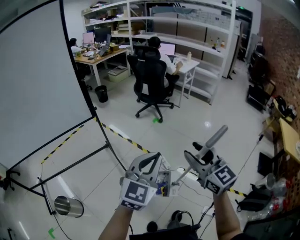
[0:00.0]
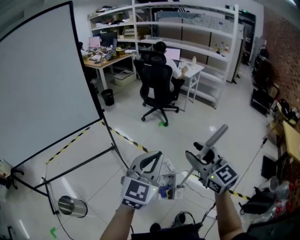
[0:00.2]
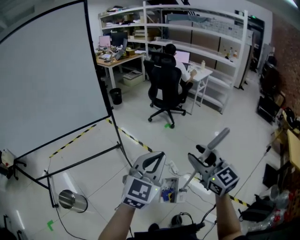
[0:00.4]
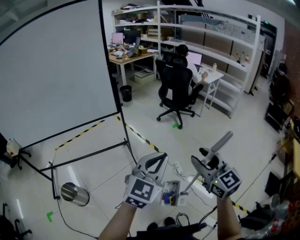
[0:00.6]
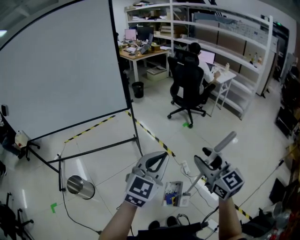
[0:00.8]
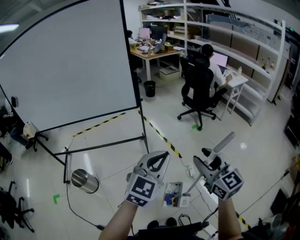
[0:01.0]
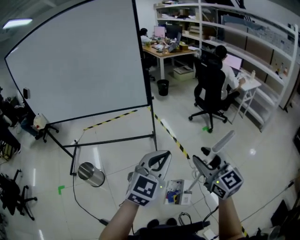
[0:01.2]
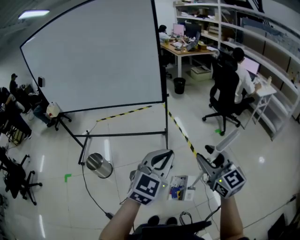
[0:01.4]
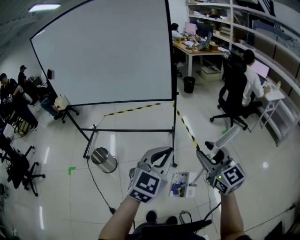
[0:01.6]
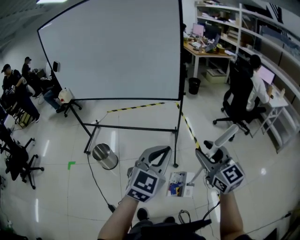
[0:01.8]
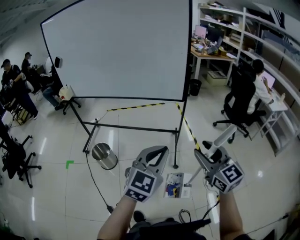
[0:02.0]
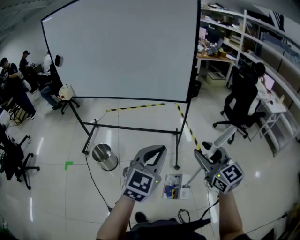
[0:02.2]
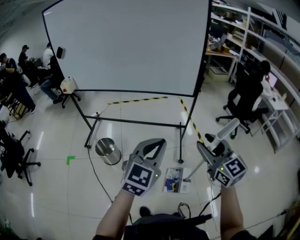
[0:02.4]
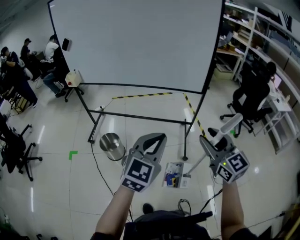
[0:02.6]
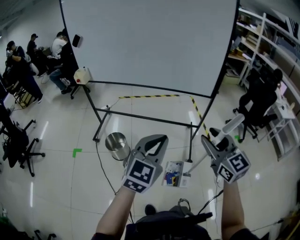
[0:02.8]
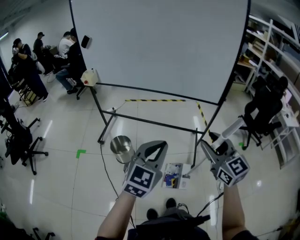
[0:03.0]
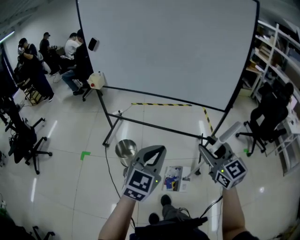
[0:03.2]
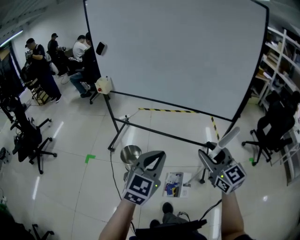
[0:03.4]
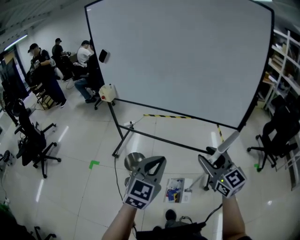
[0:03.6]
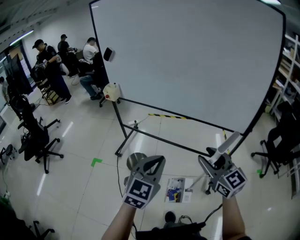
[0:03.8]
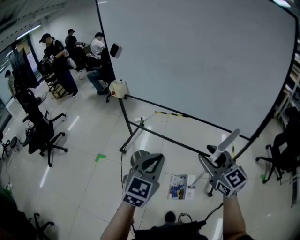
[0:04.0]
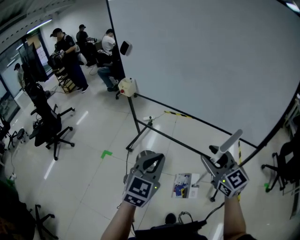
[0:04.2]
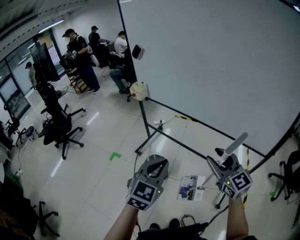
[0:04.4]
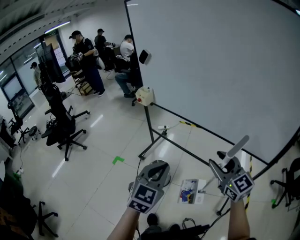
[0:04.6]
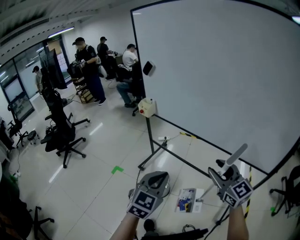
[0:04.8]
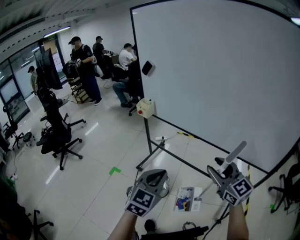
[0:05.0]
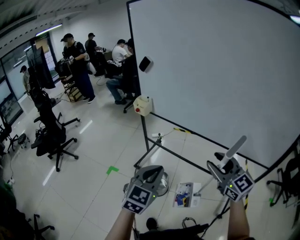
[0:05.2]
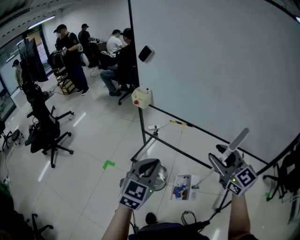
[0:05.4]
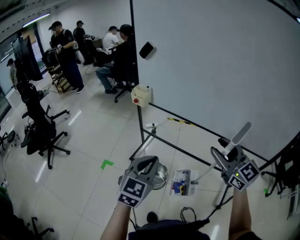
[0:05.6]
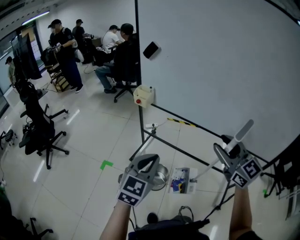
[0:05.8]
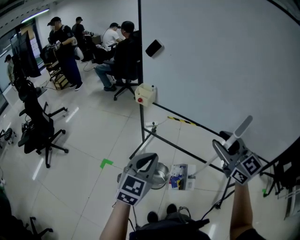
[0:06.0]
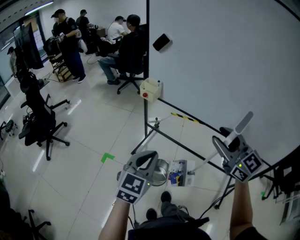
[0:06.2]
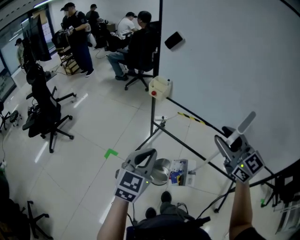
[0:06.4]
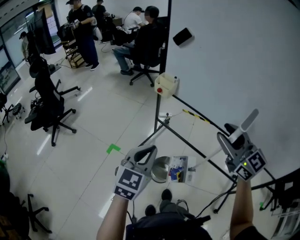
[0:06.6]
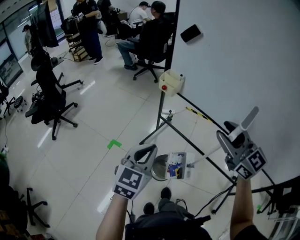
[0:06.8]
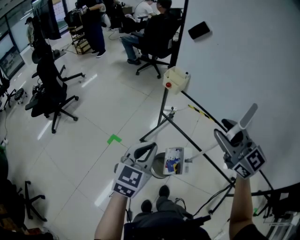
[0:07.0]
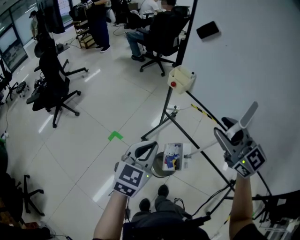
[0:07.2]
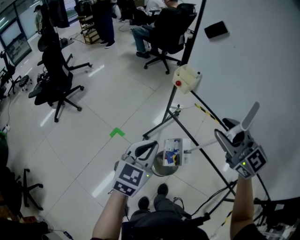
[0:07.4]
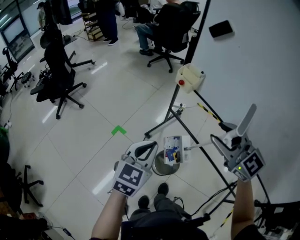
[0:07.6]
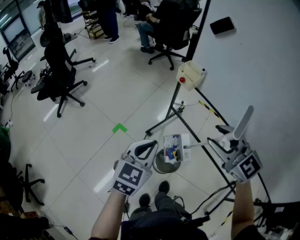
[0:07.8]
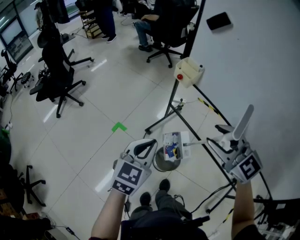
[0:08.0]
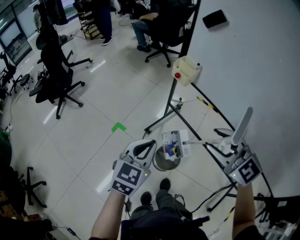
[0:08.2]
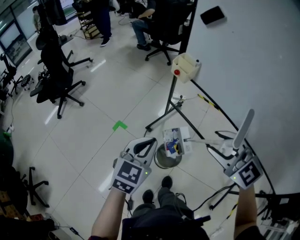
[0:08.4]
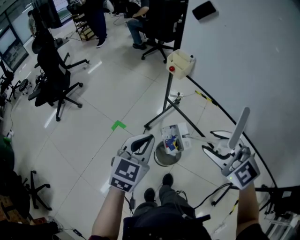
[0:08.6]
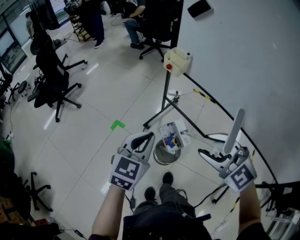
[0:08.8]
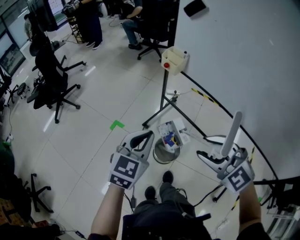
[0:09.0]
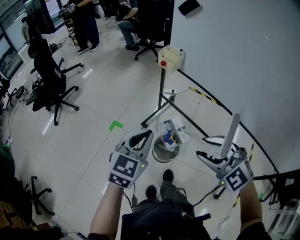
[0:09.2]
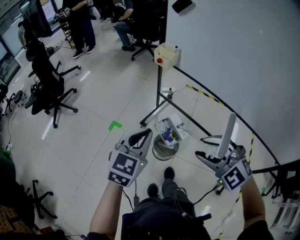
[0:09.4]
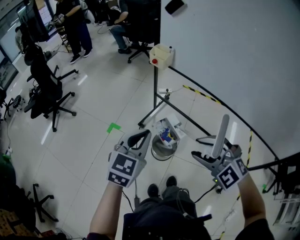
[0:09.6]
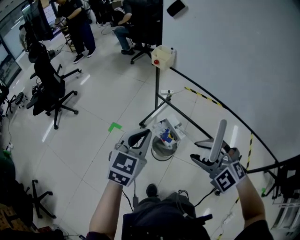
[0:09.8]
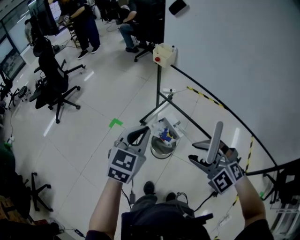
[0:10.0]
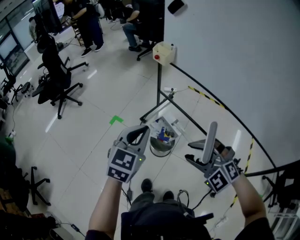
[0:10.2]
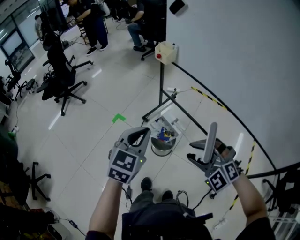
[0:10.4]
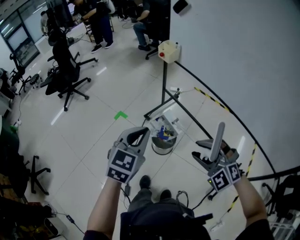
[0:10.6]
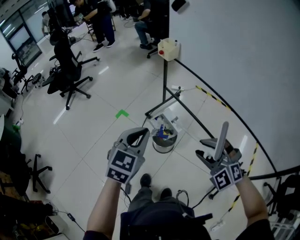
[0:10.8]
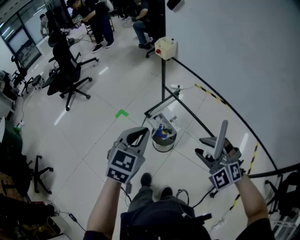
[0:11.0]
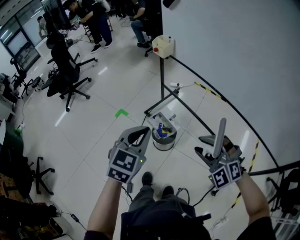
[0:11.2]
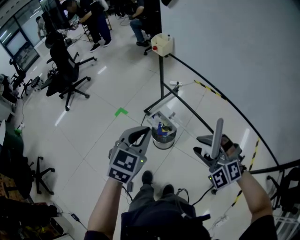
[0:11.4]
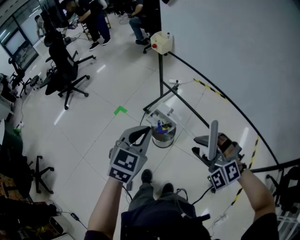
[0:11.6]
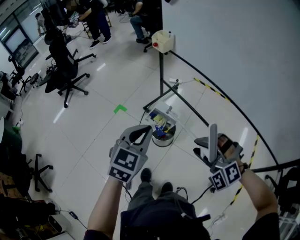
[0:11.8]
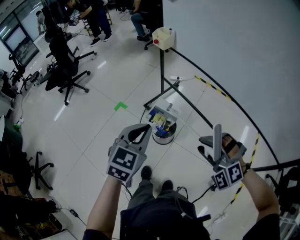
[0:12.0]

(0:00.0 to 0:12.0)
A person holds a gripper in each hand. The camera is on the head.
0:00.0 - 0:01.6: The right gripper ends up roughly 10 cm from where it was, and changes its angle by about 40 degrees. Meanwhile the left gripper shifts by roughly 10 cm, and changes its angle by about 40 degrees.
0:01.6 - 0:03.0: The grippers both shift to the left by approximately 30 cm.
0:03.0 - 0:04.4: The right gripper heads forward, covering about 25 cm, and turns by roughly 20 degrees; the left gripper shifts about 20 cm forward and to the left, and rotates approximately 30 degrees.
0:04.4 - 0:06.0: Both grippers move to the left and forward, some 25 cm.
0:06.0 - 0:07.6: The left gripper heads forward, to the left and downward, covering some 15 cm, and changes its angle by about 20 degrees, while the right gripper shifts about 20 cm forward and to the left, and changes its angle by roughly 30 degrees.
0:07.6 - 0:09.0: The right gripper goes roughly 15 cm backward and downward, and turns by some 20 degrees.
0:09.0 - 0:10.4: The left gripper shifts some 15 cm backward, while the right gripper is displaced backward and downward by roughly 15 cm, and swivels roughly 20 degrees.
0:10.4 - 0:12.0: The right gripper heads to the right, covering about 5 cm; the left gripper travels backward by some 5 cm.

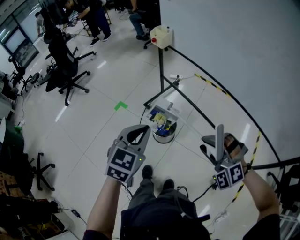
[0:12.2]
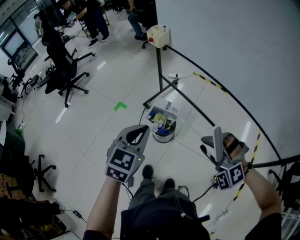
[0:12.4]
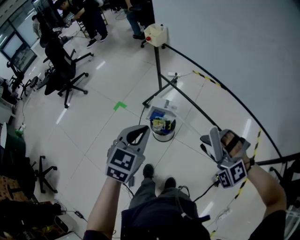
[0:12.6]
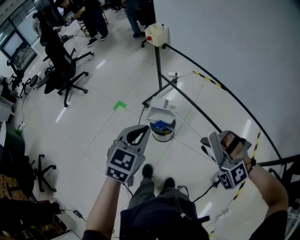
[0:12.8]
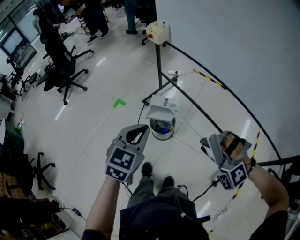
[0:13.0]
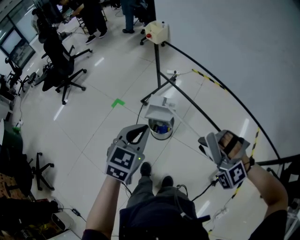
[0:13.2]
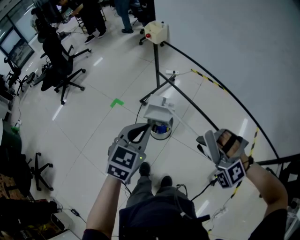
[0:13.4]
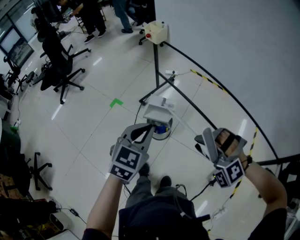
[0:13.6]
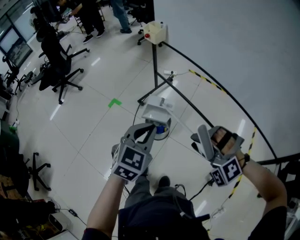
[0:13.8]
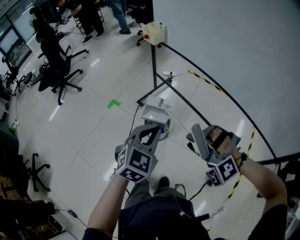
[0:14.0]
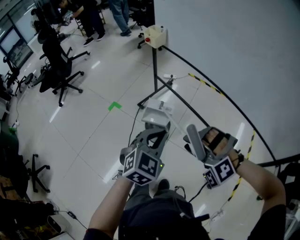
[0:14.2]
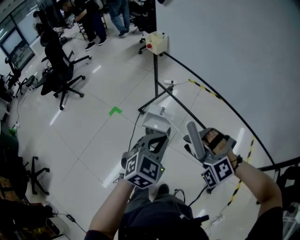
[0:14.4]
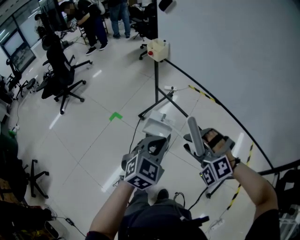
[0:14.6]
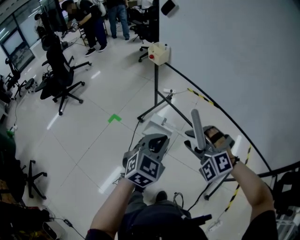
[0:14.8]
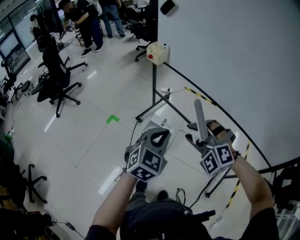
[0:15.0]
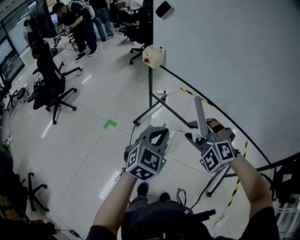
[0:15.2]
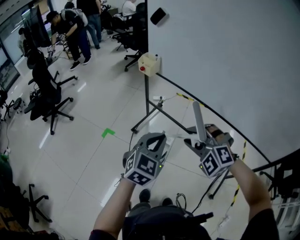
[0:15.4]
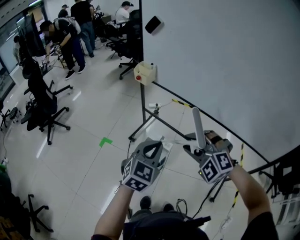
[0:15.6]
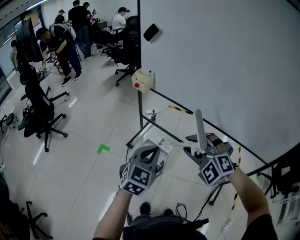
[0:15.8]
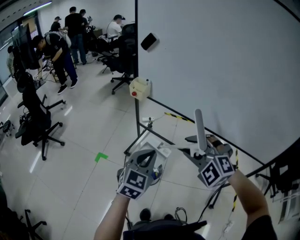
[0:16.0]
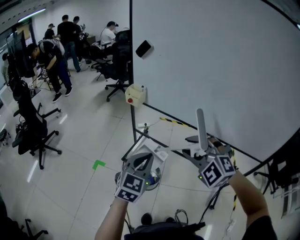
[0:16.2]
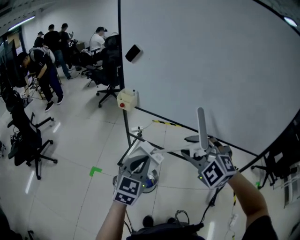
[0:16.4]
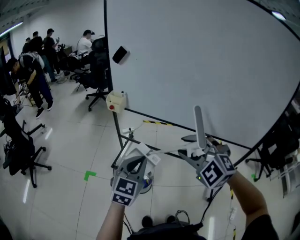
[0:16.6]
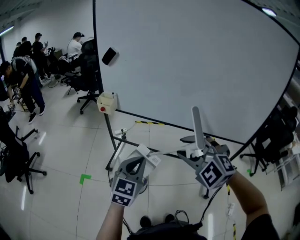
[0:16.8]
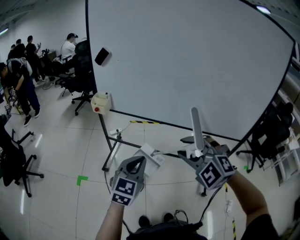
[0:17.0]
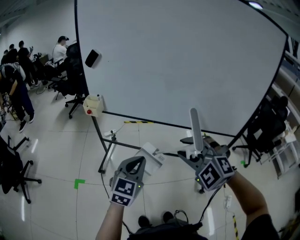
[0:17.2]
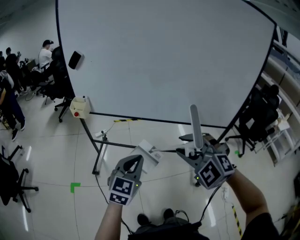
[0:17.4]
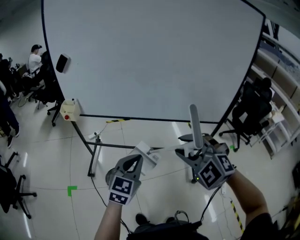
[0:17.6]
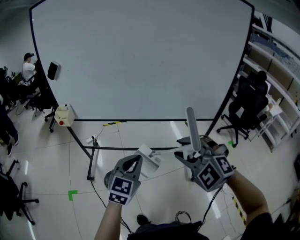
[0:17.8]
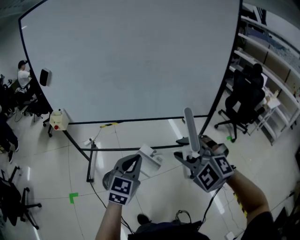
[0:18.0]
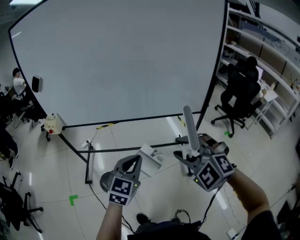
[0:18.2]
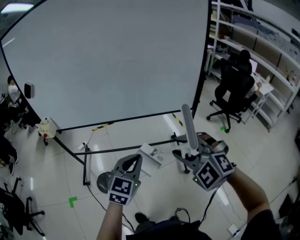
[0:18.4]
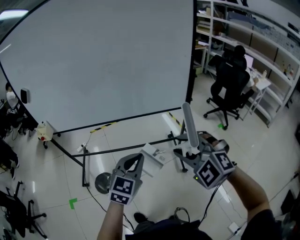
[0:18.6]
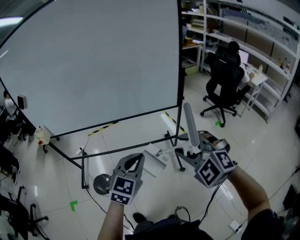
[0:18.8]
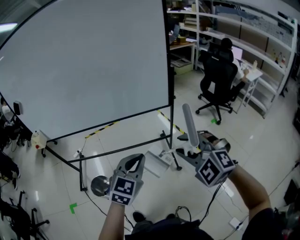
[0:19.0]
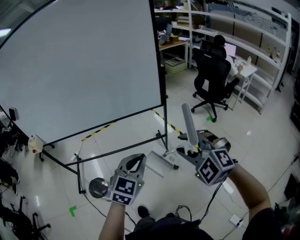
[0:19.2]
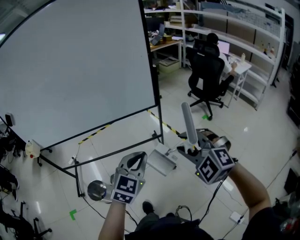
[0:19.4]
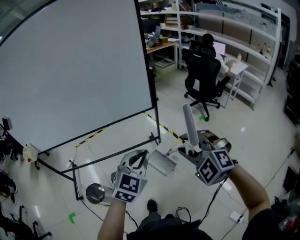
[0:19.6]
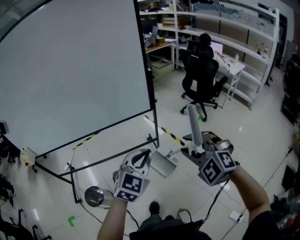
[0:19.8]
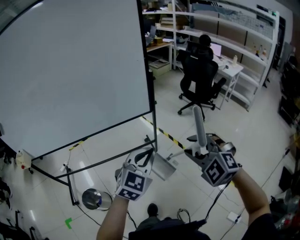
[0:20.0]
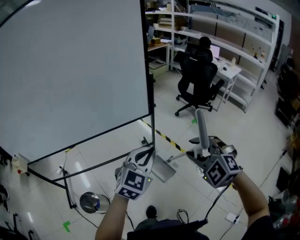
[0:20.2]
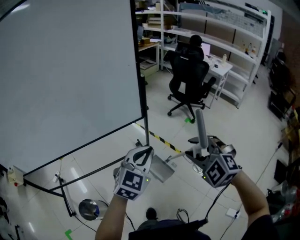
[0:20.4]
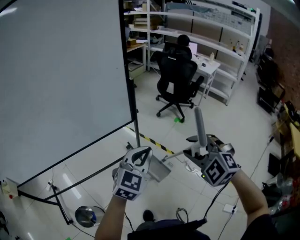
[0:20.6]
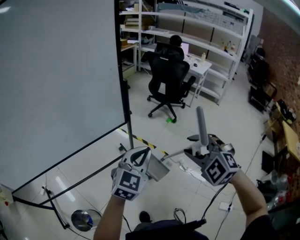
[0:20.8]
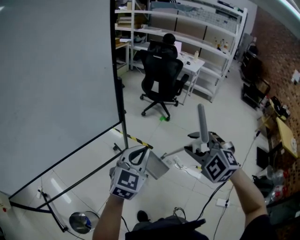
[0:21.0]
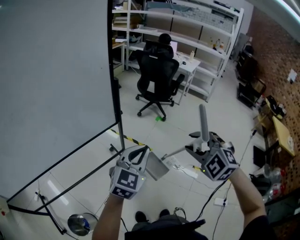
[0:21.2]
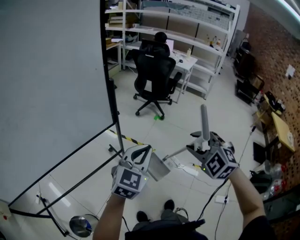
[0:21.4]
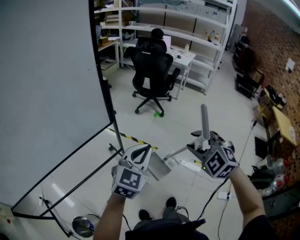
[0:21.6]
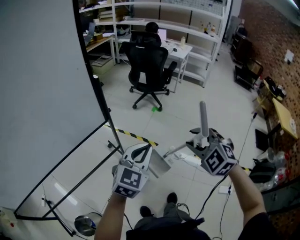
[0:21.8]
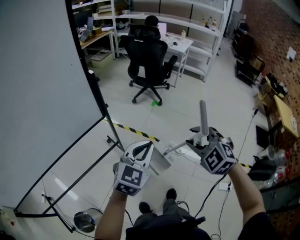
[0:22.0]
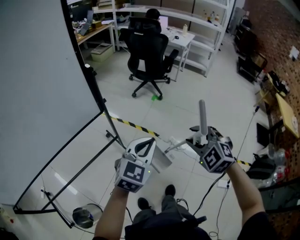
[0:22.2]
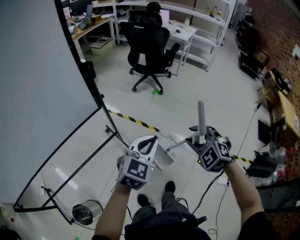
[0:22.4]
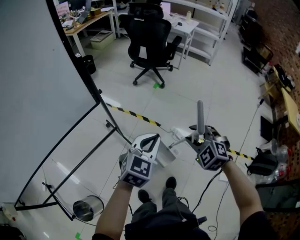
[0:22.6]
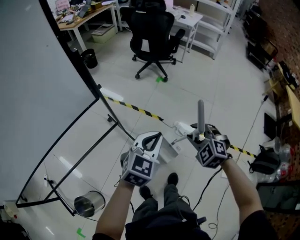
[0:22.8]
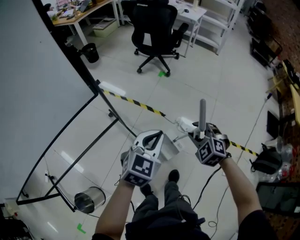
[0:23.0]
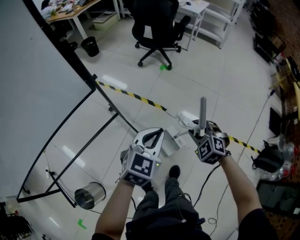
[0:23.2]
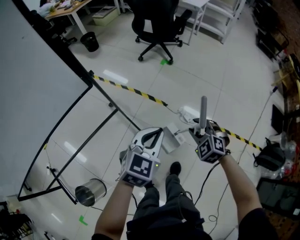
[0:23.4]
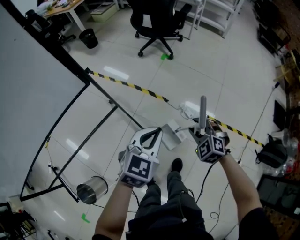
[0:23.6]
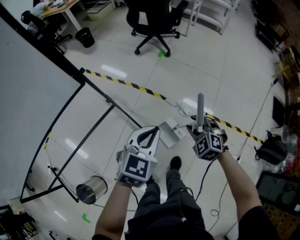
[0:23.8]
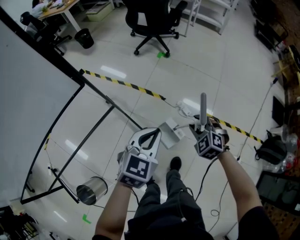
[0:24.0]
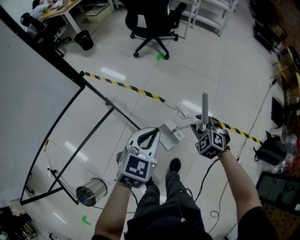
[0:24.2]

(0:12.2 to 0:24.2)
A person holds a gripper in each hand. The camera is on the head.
0:12.2 - 0:13.8: The grippers make only small movements.
0:13.8 - 0:15.2: The left gripper is displaced forward by some 5 cm. The right gripper heads forward and upward, covering about 15 cm, and swivels approximately 20 degrees.
0:15.2 - 0:16.6: The left gripper is displaced to the left by about 5 cm. The right gripper shifts roughly 15 cm upward, and swivels some 30 degrees.
0:16.6 - 0:18.2: Both grippers move to the right, approximately 30 cm. The left gripper swivels approximately 30 degrees. Meanwhile the right gripper turns by about 20 degrees.
0:18.2 - 0:19.8: Both grippers move to the right, some 30 cm. The right gripper swivels roughly 20 degrees. The left gripper rotates some 30 degrees.
0:19.8 - 0:21.2: The left gripper changes place by about 15 cm, and turns by about 30 degrees. Meanwhile the right gripper shifts by about 10 cm, and turns by approximately 30 degrees.
0:21.2 - 0:22.6: The left gripper heads to the right, downward and forward, covering roughly 20 cm. The right gripper heads downward and to the right, covering approximately 20 cm.
0:22.6 - 0:24.2: The right gripper travels downward by approximately 20 cm; the left gripper is displaced downward by roughly 10 cm.
